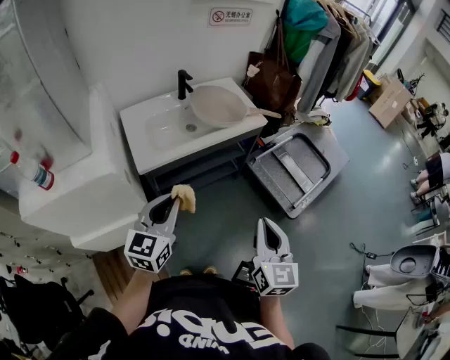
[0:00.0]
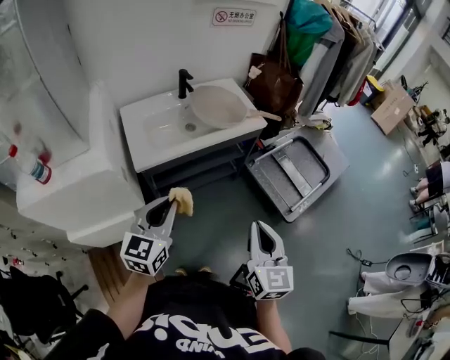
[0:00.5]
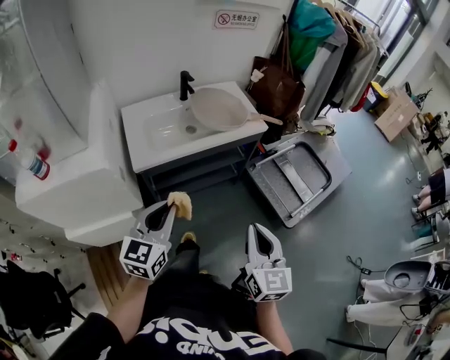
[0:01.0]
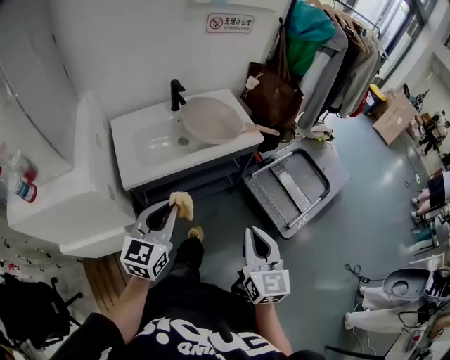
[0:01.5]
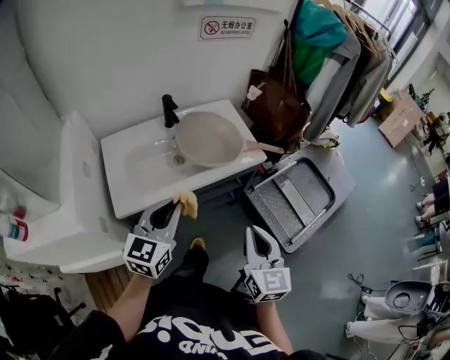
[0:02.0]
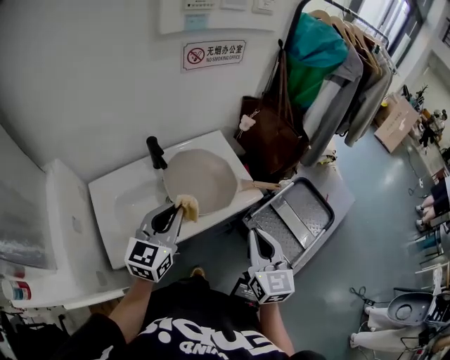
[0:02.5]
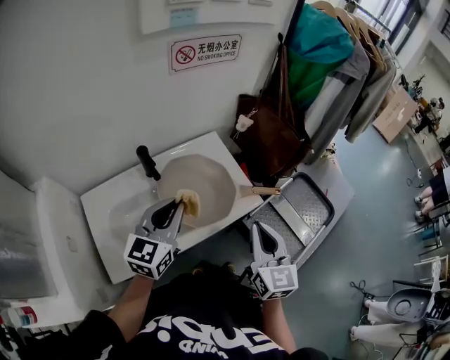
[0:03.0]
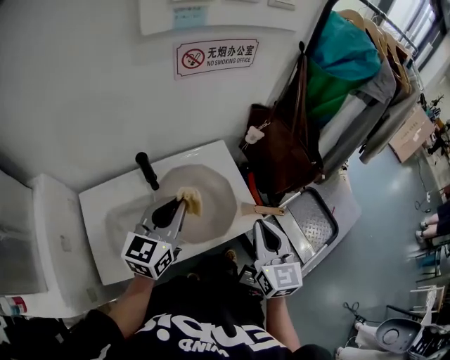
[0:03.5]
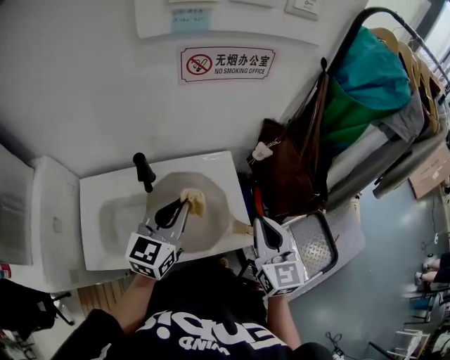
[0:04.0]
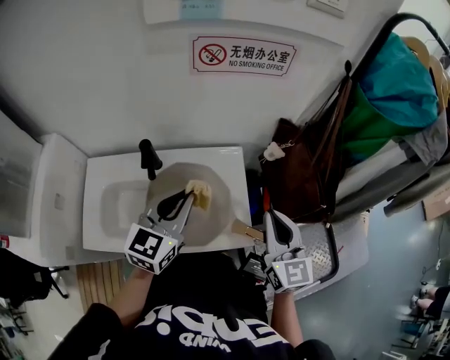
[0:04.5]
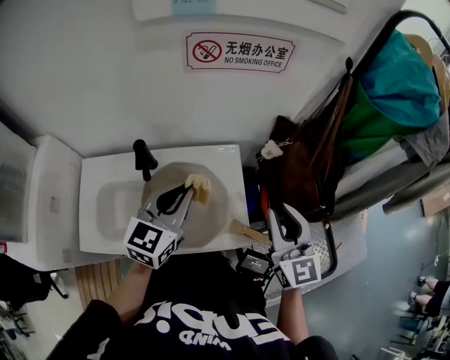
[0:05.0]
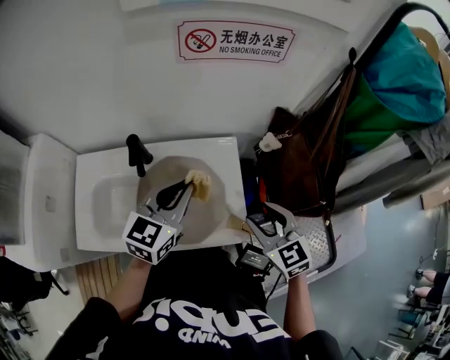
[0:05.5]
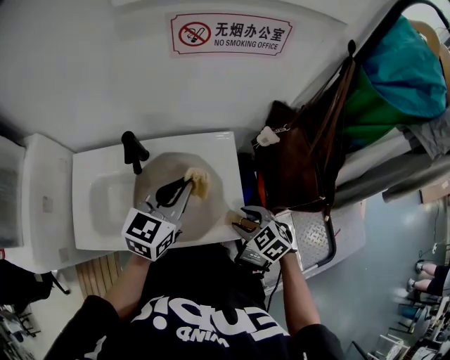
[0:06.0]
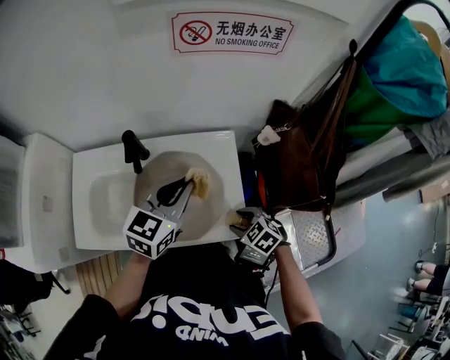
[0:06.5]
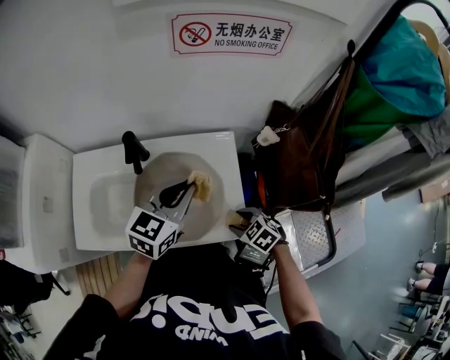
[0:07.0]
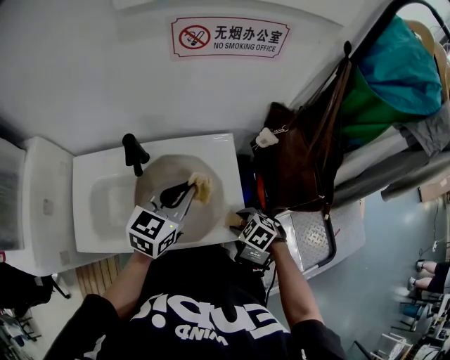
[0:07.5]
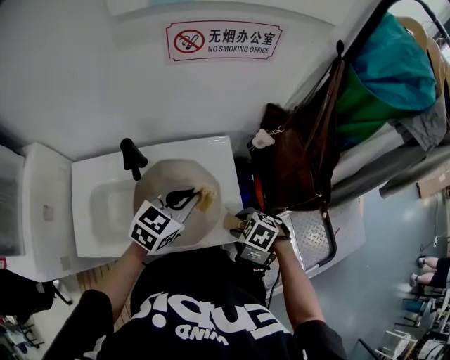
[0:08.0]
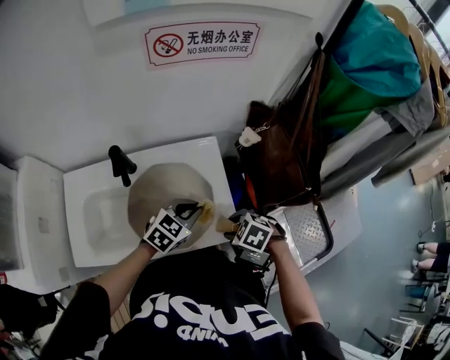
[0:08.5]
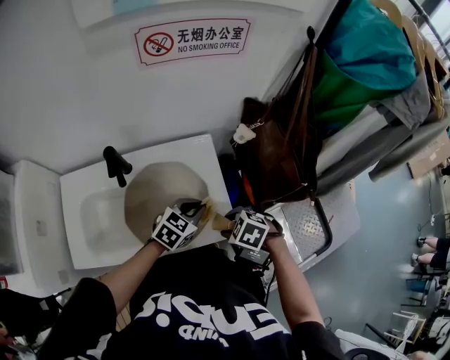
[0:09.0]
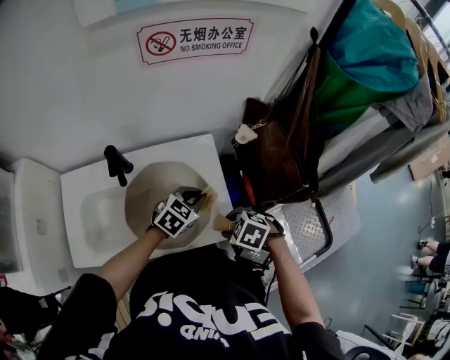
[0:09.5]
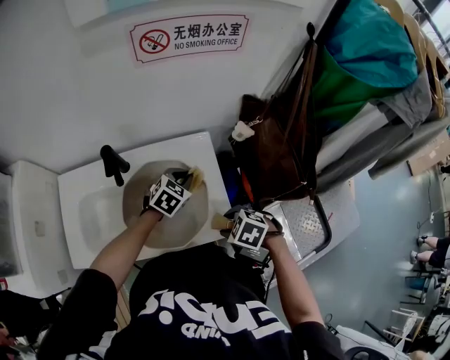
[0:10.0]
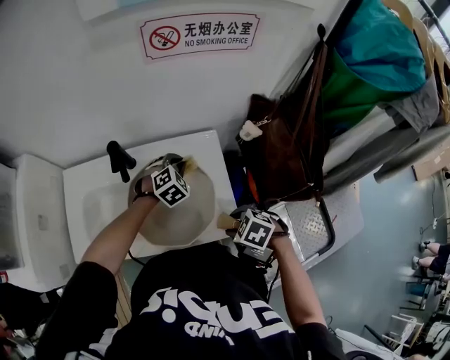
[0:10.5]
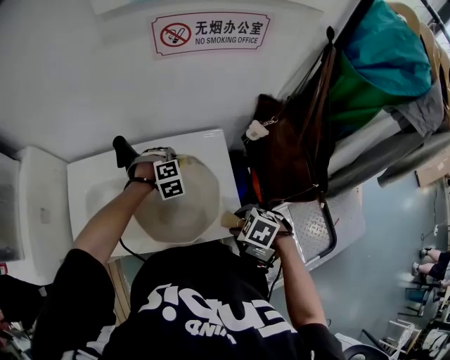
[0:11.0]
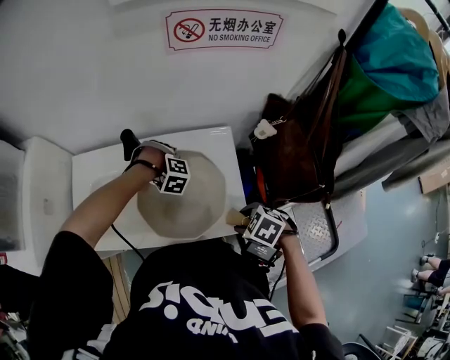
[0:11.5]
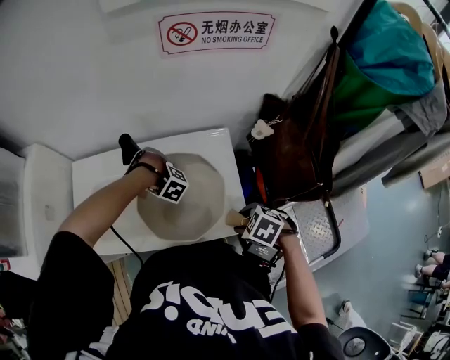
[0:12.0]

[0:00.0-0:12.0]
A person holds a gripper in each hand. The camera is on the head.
0:00.0 to 0:02.0: The two grippers go some 20 cm forward.
0:02.0 to 0:04.0: The grippers both shift forward by approximately 35 cm.
0:04.0 to 0:06.0: The left gripper ends up about 5 cm from where it was; the right gripper heads downward, covering some 20 cm, points its fingers roughly 40 degrees further downward, and opens its fingers.
0:06.0 to 0:08.0: The right gripper swivels approximately 20 degrees, while the left gripper shifts roughly 5 cm downward.
0:08.0 to 0:10.0: The left gripper moves downward, about 10 cm.
0:10.0 to 0:12.0: The left gripper shifts by about 20 cm, and swivels approximately 90 degrees.

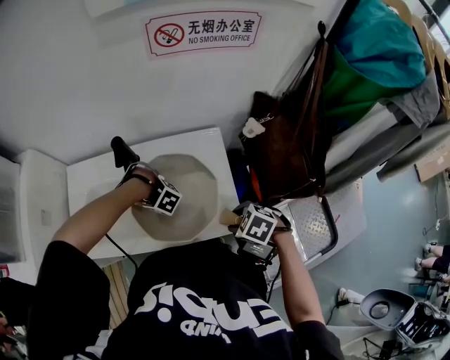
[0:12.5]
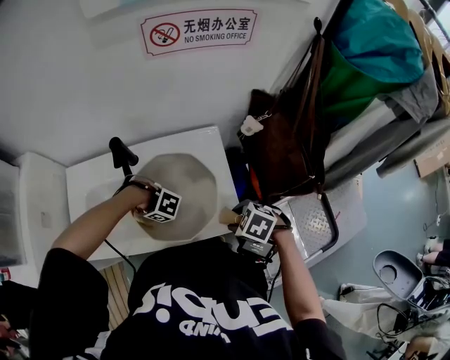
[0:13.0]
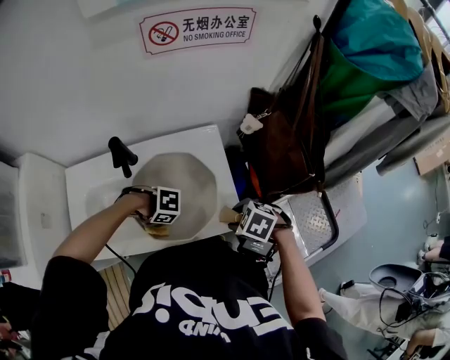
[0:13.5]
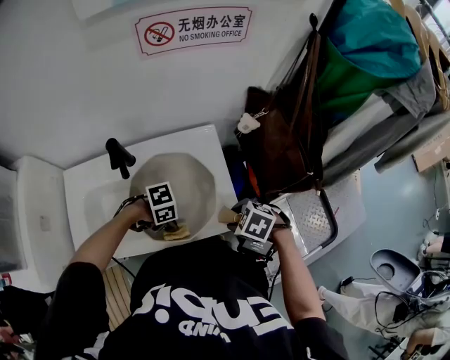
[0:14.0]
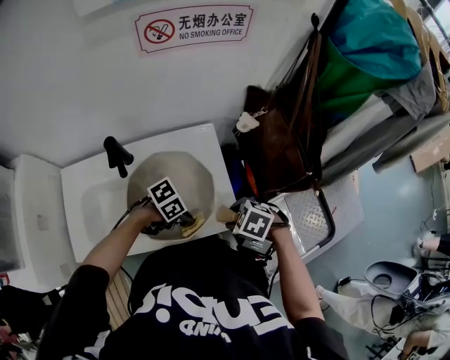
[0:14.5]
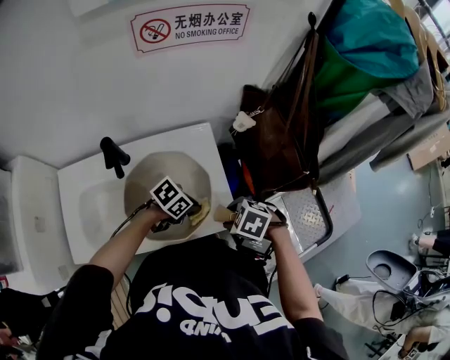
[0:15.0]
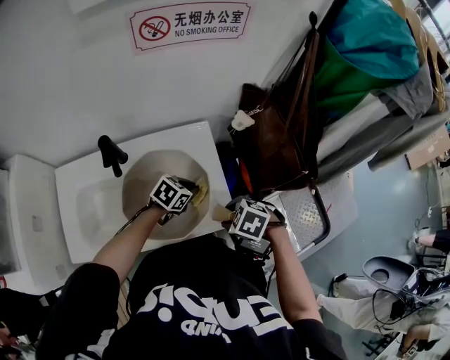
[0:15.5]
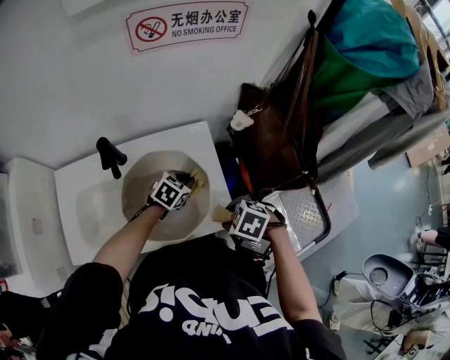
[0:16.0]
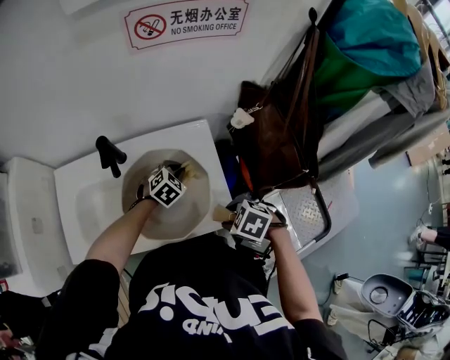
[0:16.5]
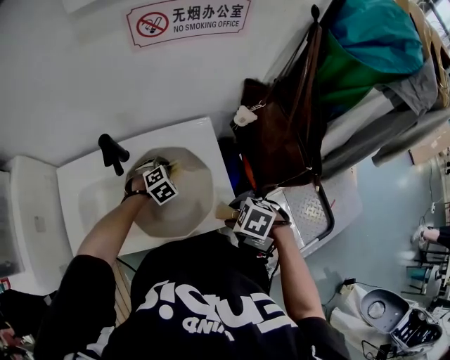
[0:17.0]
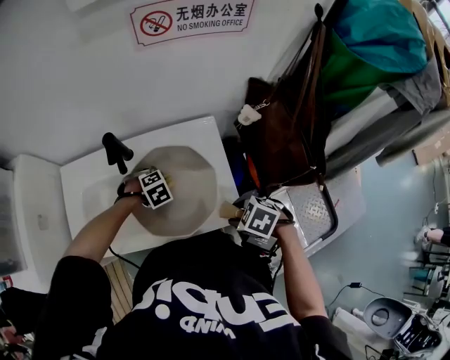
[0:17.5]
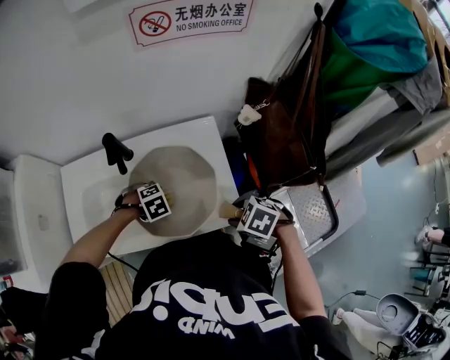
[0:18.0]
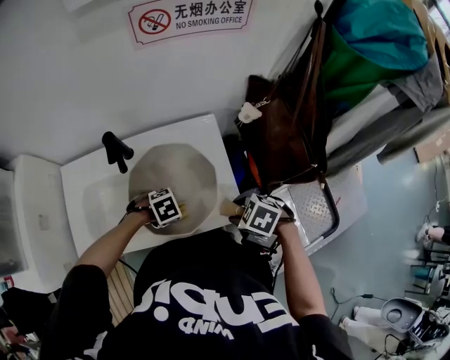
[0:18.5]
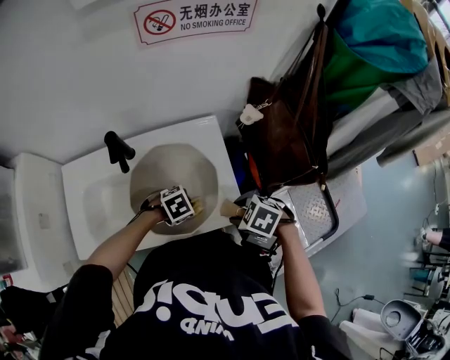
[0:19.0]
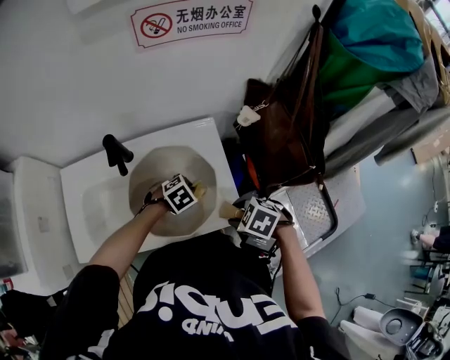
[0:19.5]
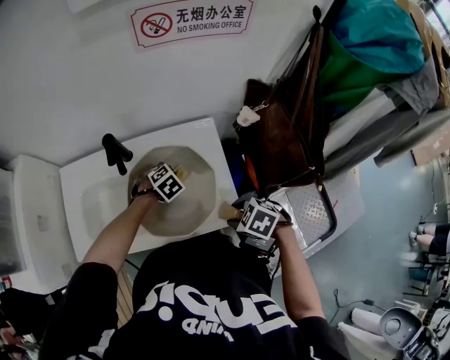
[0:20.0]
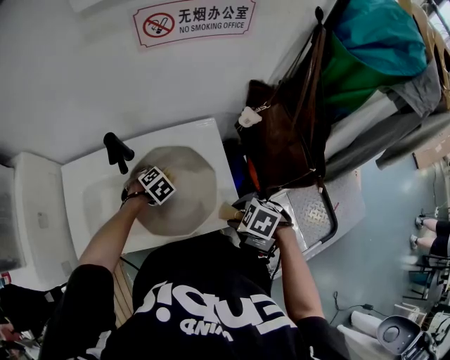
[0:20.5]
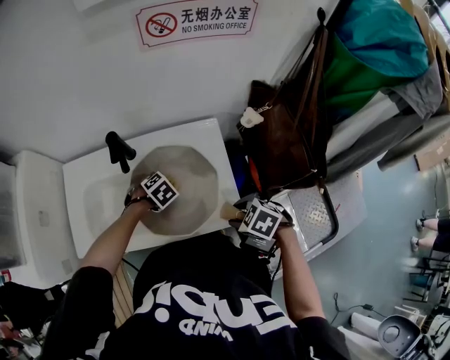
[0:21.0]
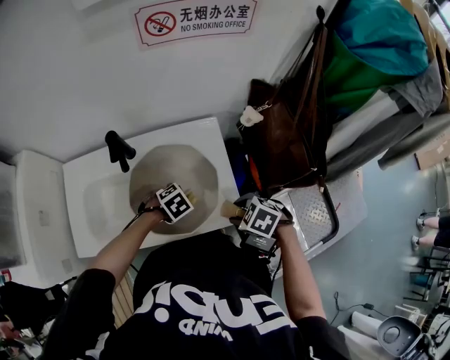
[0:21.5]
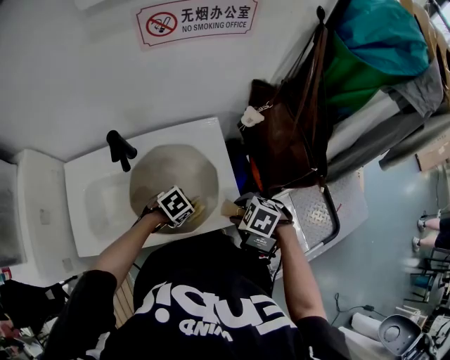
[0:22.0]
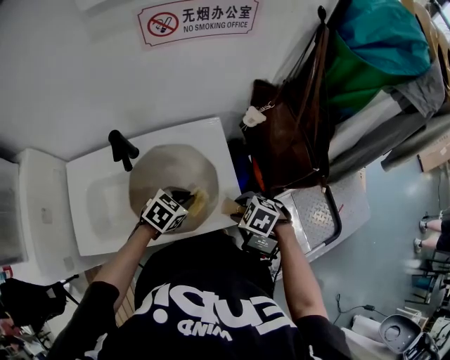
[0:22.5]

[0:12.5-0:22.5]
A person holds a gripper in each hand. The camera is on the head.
0:12.5 to 0:14.5: The left gripper ends up roughly 20 cm from where it was, and turns by approximately 80 degrees.
0:14.5 to 0:16.5: The left gripper moves about 20 cm, and swivels approximately 60 degrees.
0:16.5 to 0:18.5: The left gripper moves some 15 cm, and turns by roughly 40 degrees.
0:18.5 to 0:20.5: The left gripper changes place by about 15 cm, and rotates about 30 degrees.
0:20.5 to 0:22.5: The left gripper shifts by roughly 15 cm, and swivels about 30 degrees.

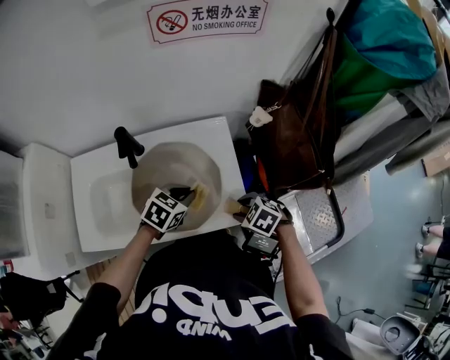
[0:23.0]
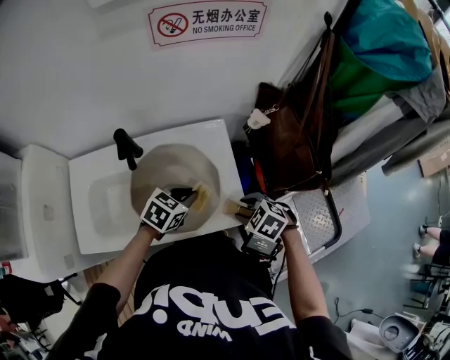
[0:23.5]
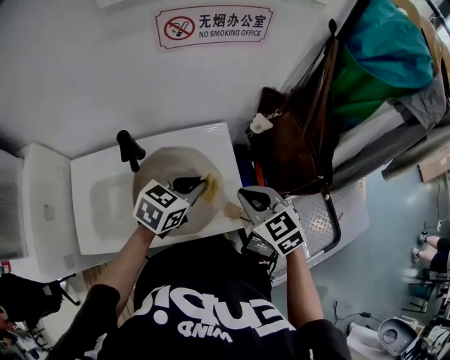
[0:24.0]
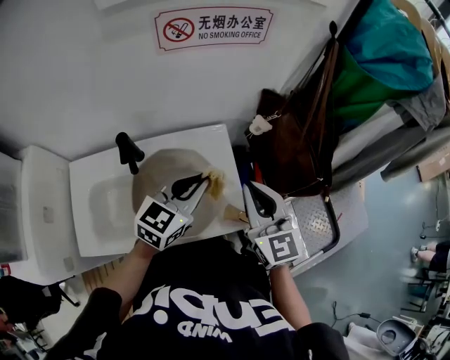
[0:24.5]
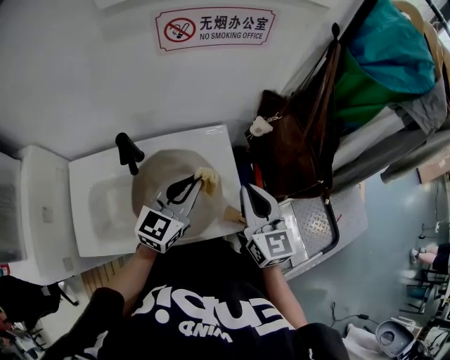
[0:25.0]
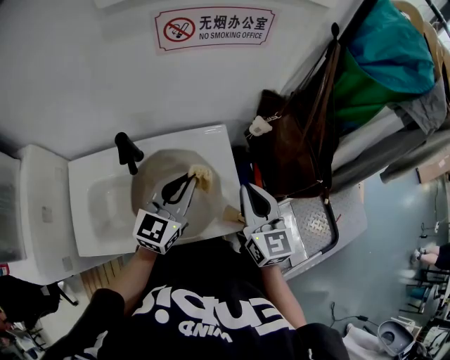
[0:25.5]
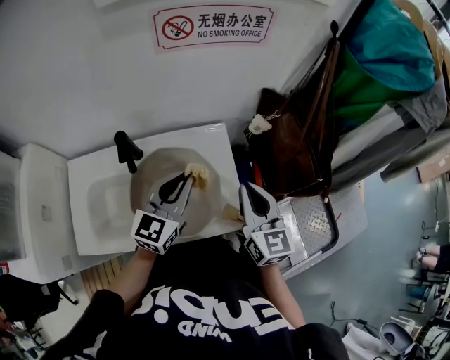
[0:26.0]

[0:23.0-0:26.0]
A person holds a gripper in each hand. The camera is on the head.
0:23.0 to 0:24.5: The left gripper goes roughly 15 cm upward, and tips its fingers upward by about 30 degrees; the right gripper is displaced upward by approximately 25 cm, angles its fingers upward, by some 60 degrees, and closes.
0:24.5 to 0:26.0: The grippers move only a little.

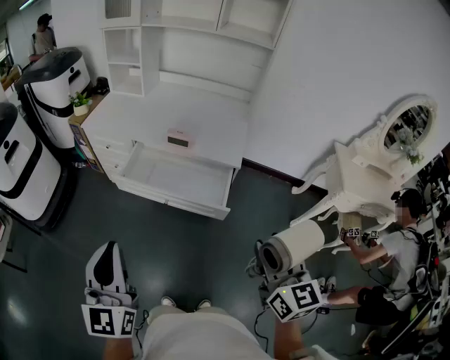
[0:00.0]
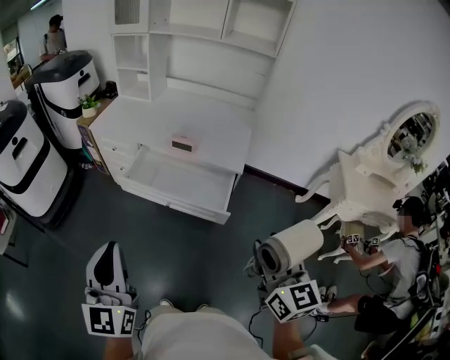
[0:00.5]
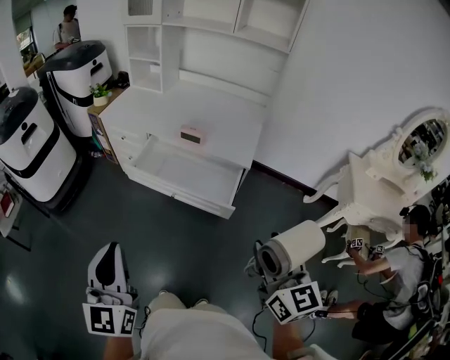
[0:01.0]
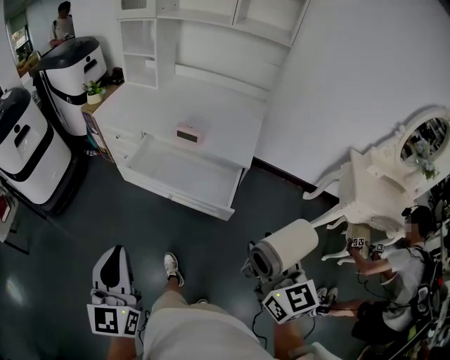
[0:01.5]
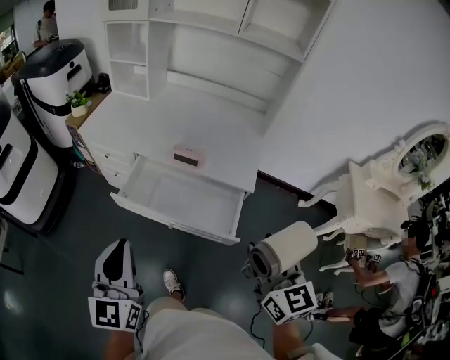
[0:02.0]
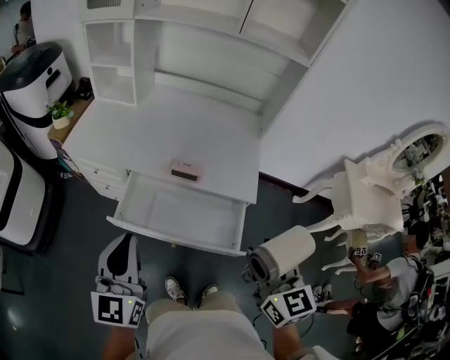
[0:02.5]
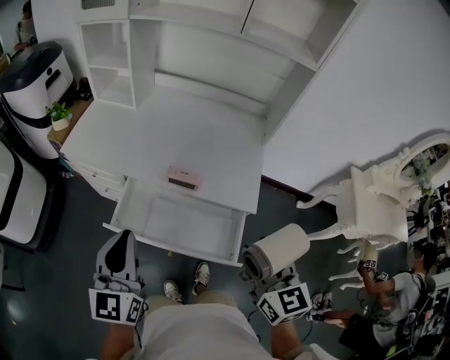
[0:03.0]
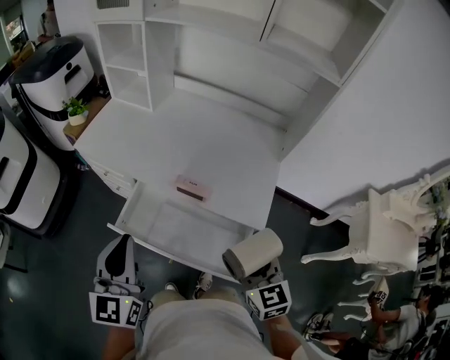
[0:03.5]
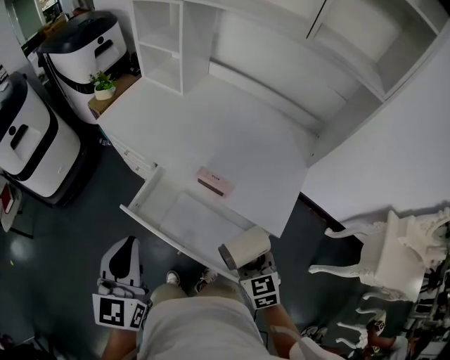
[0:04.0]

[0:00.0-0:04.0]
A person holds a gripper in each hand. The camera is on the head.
0:00.0 to 0:02.0: Both grippers move forward, about 15 cm.
0:02.0 to 0:04.0: The left gripper shifts roughly 20 cm forward. Meanwhile the right gripper goes some 30 cm forward and downward, and turns by some 30 degrees.
